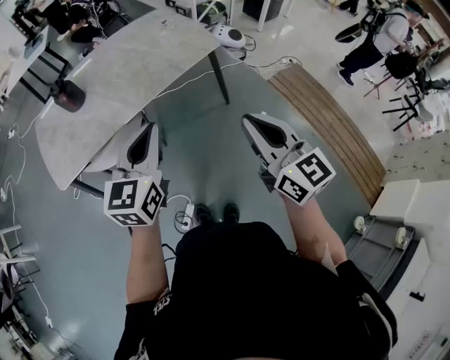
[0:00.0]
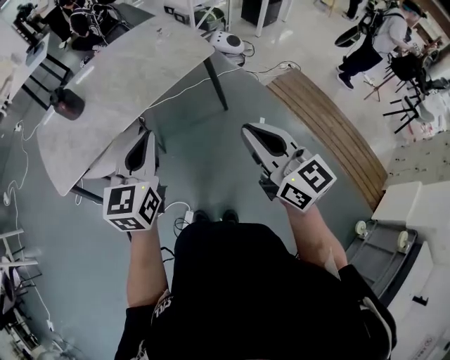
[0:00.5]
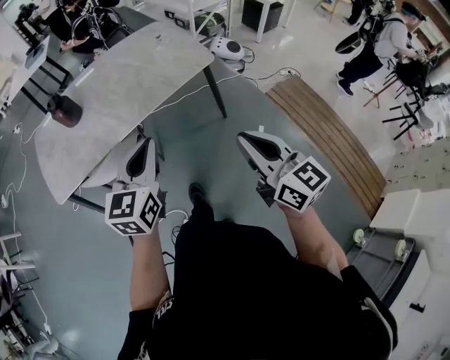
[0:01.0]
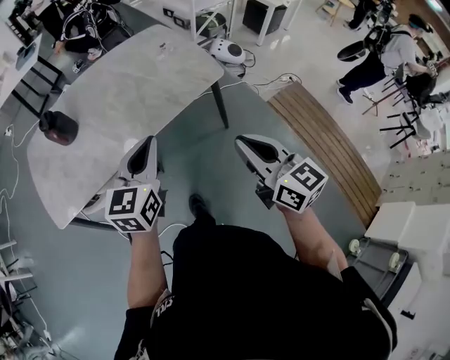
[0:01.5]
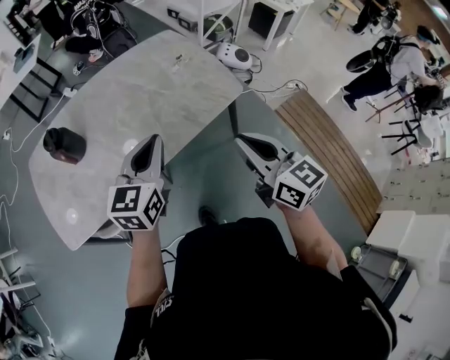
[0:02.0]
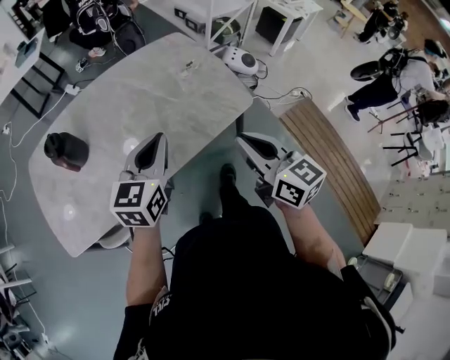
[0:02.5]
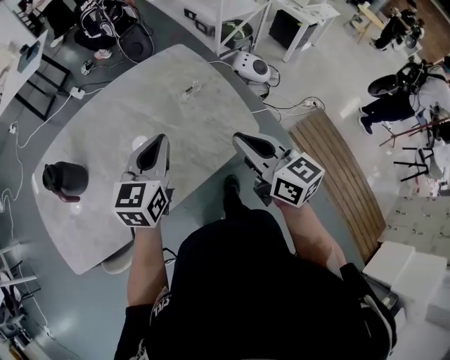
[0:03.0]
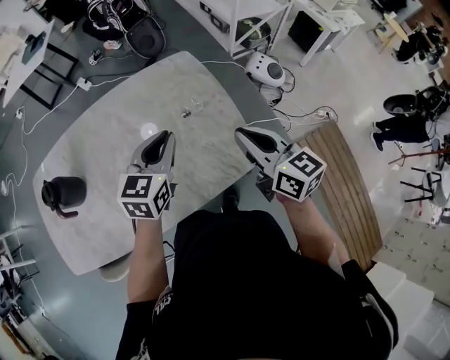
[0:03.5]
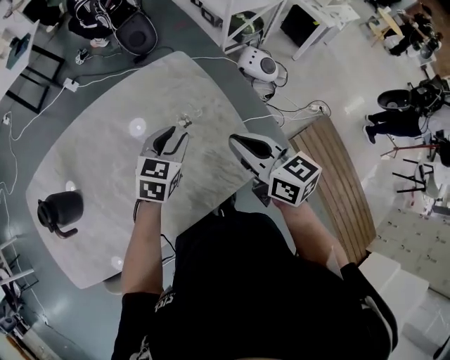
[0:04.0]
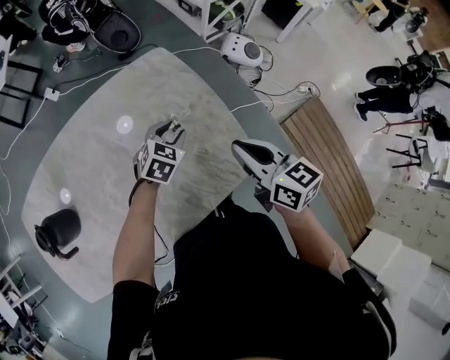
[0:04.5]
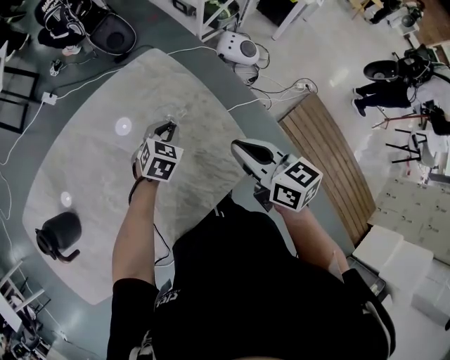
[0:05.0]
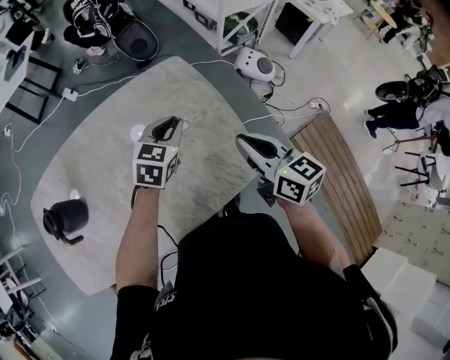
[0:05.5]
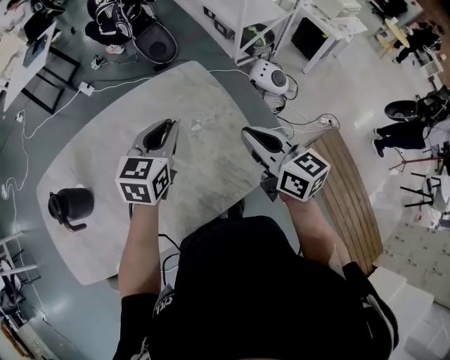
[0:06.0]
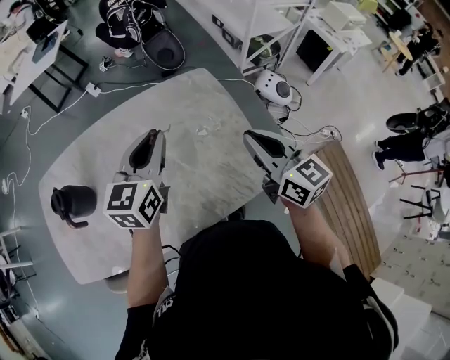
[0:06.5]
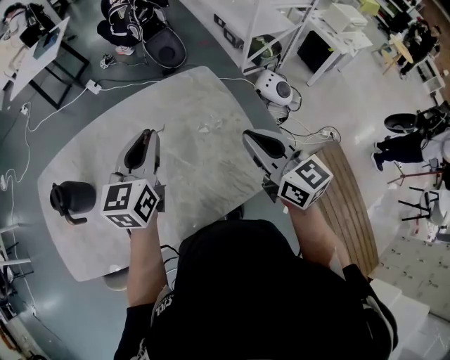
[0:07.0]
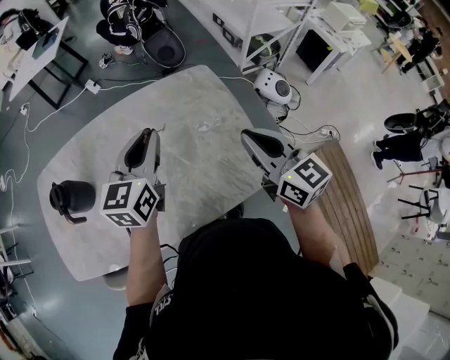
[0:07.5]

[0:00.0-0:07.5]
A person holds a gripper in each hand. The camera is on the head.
0:00.0 to 0:02.0: Both grippers move forward, about 30 cm.
0:02.0 to 0:04.0: The grippers both shift forward by some 40 cm. The left gripper changes its angle by some 20 degrees, and opens.
0:04.0 to 0:05.5: The left gripper travels downward and back again, roughly 10 cm each way, and closes up.
0:05.5 to 0:07.5: The right gripper is displaced upward by some 5 cm; the left gripper travels upward and to the left by some 20 cm, and turns by approximately 30 degrees.

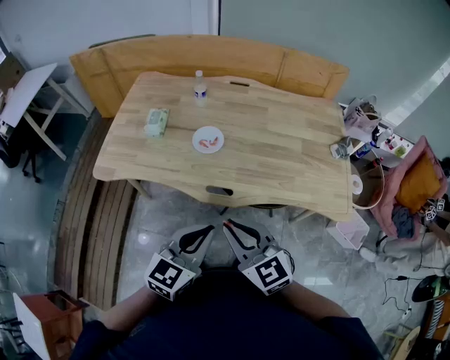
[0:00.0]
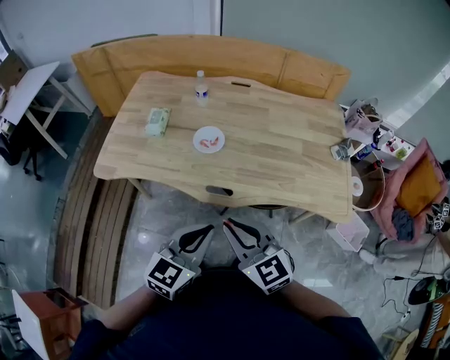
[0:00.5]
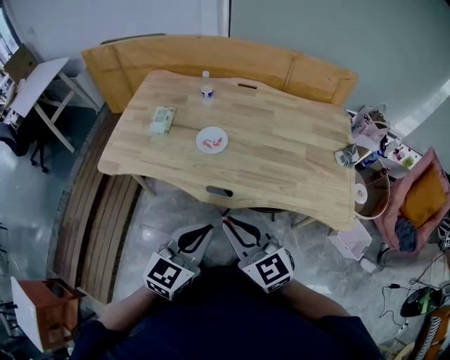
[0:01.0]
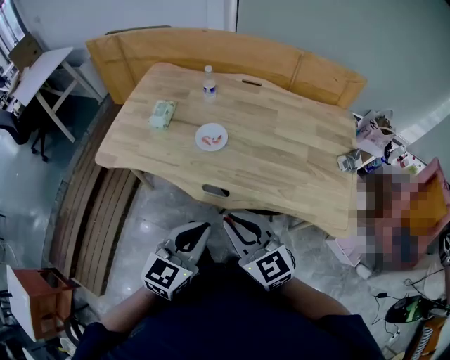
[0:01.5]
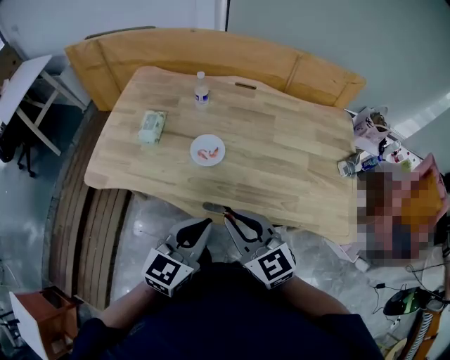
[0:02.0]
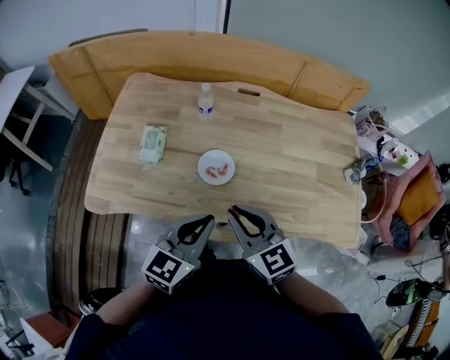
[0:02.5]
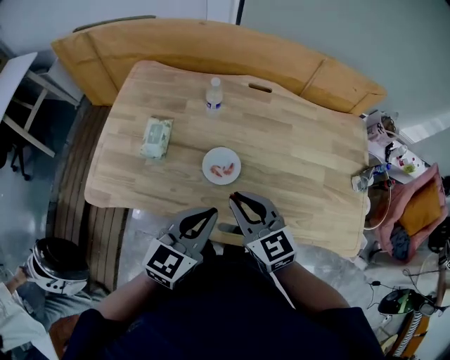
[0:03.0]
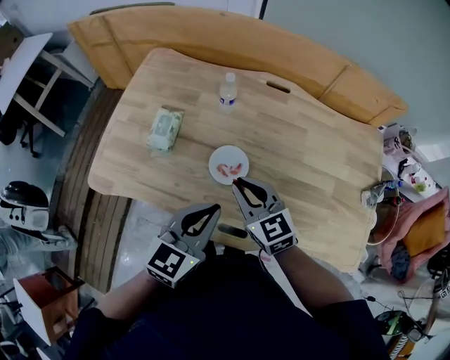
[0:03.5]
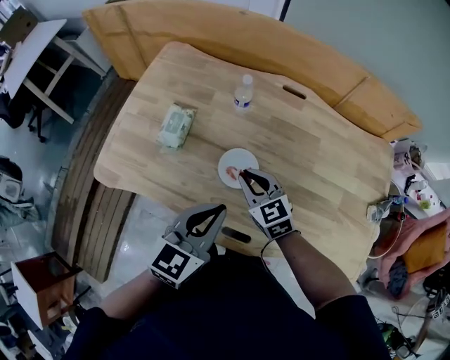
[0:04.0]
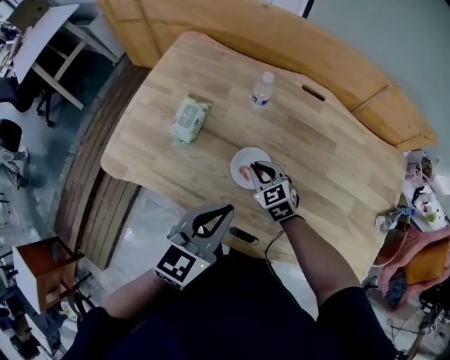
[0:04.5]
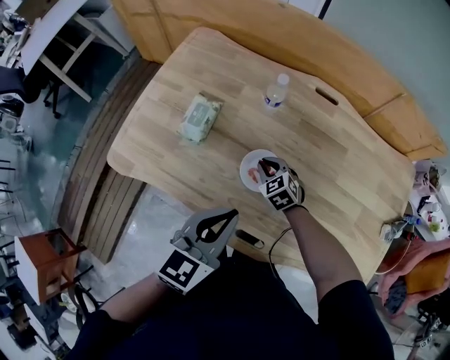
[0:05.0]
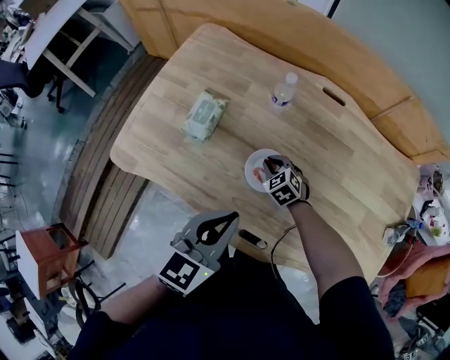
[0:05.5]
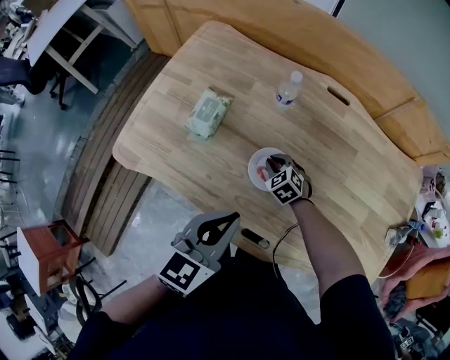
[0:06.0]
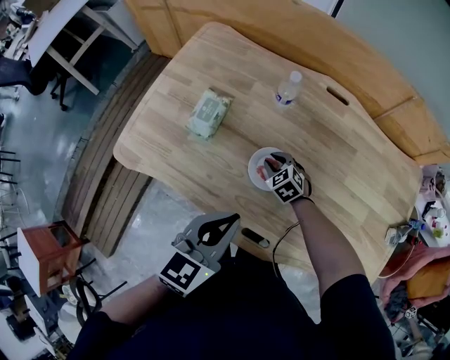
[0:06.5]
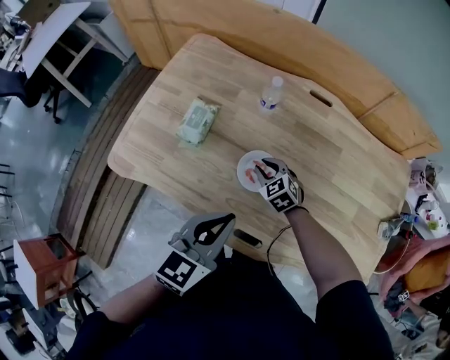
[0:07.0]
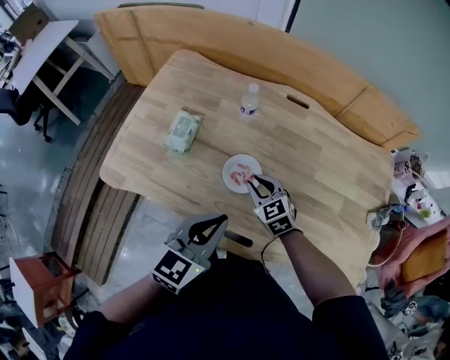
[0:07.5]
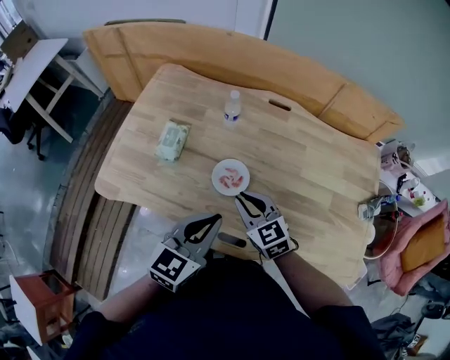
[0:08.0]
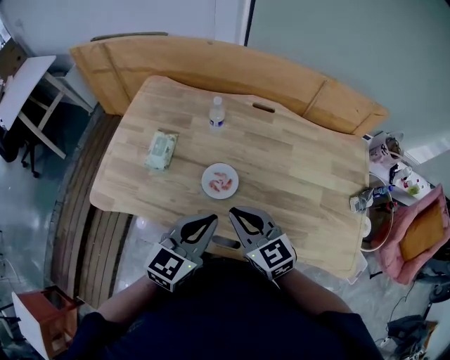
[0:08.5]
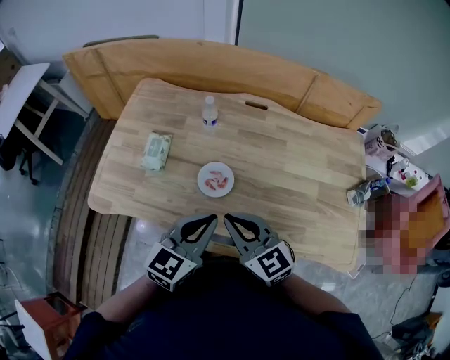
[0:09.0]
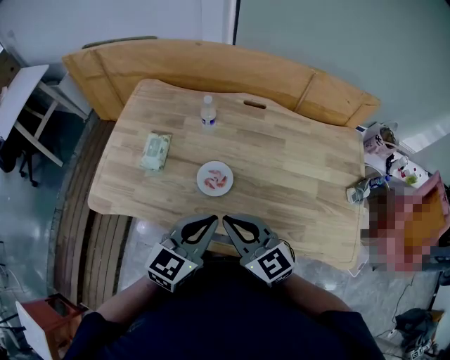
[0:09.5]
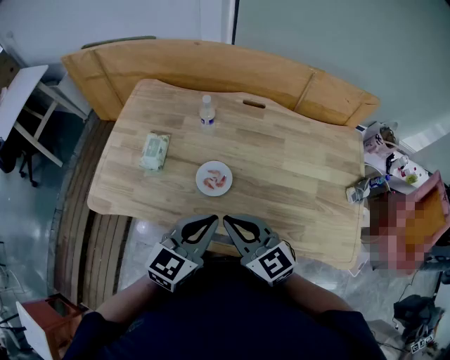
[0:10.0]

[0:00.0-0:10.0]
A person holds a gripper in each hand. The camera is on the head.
0:00.0 to 0:02.0: The grippers both shift forward by roughly 10 cm.
0:02.0 to 0:04.0: The right gripper goes about 30 cm forward and downward. Meanwhile the left gripper travels forward by approximately 20 cm.
0:04.0 to 0:06.0: The right gripper shifts some 20 cm downward and forward, and swivels roughly 30 degrees.
0:06.0 to 0:08.0: The right gripper heads upward and backward, covering roughly 25 cm, and turns by some 30 degrees. The left gripper changes place by about 5 cm.
0:08.0 to 0:10.0: The right gripper shifts some 15 cm upward and backward.

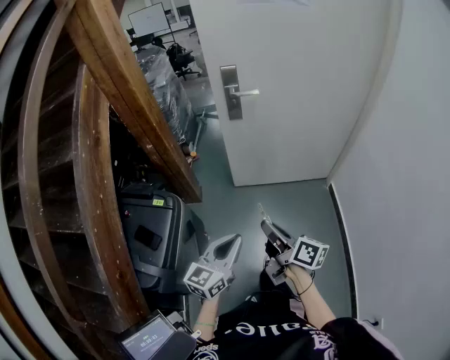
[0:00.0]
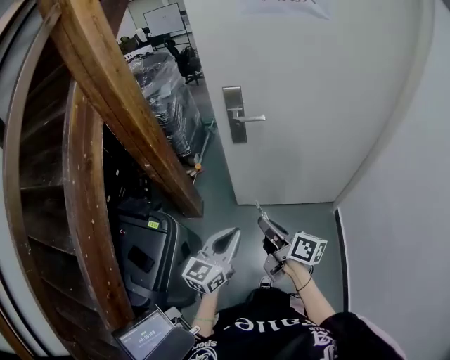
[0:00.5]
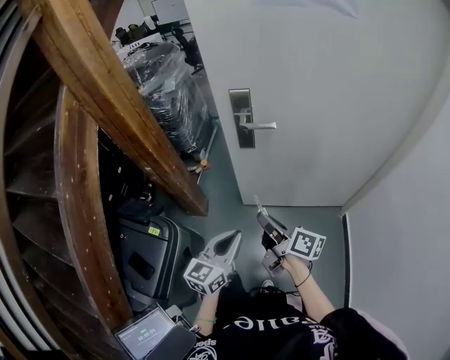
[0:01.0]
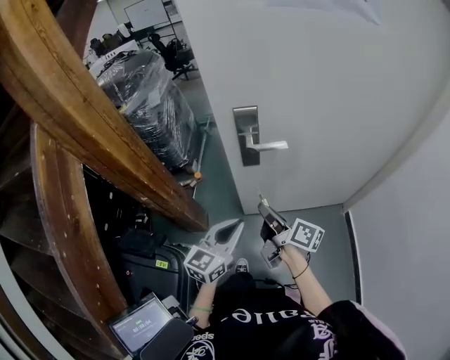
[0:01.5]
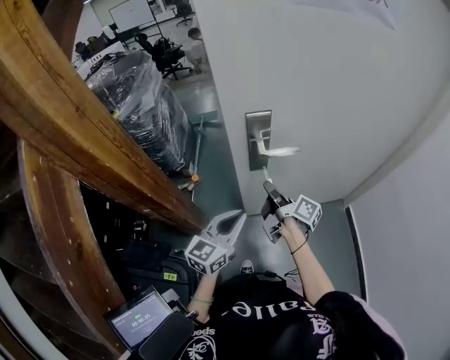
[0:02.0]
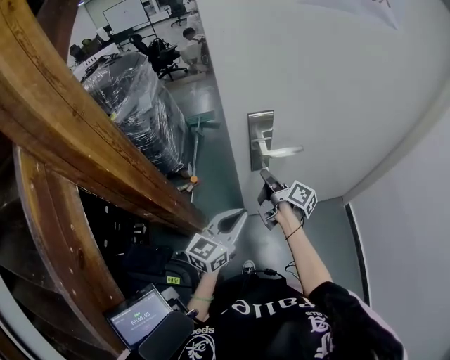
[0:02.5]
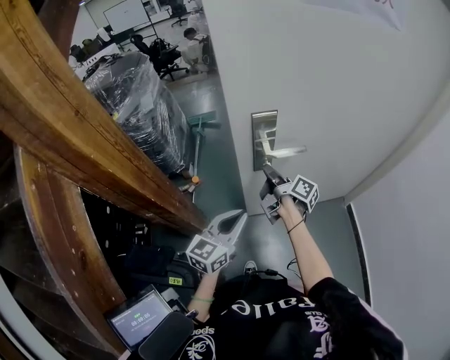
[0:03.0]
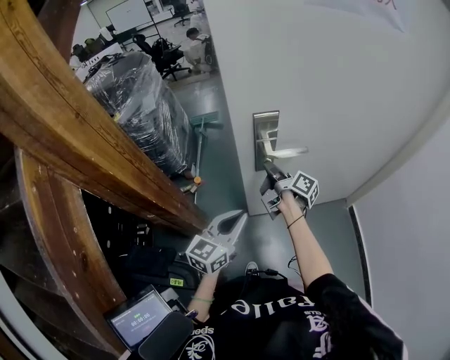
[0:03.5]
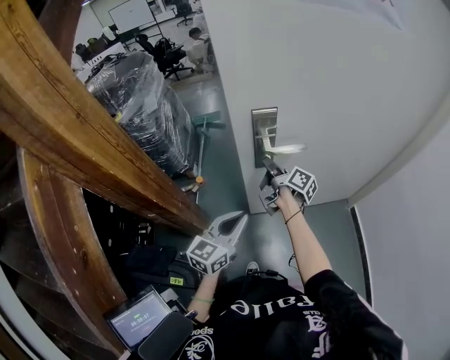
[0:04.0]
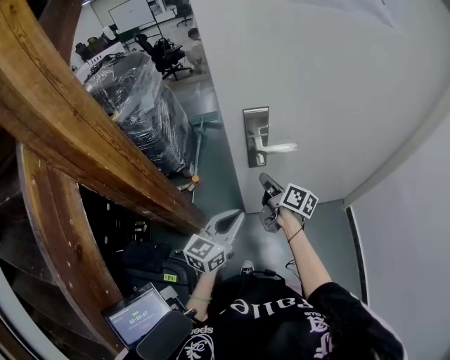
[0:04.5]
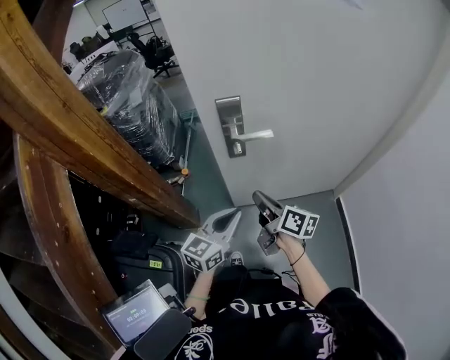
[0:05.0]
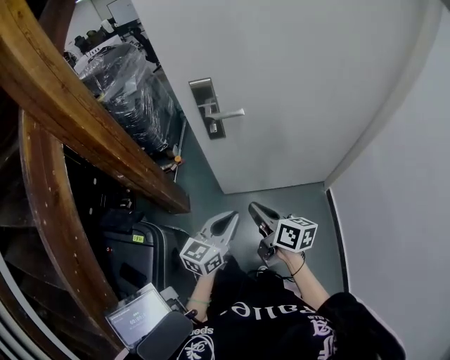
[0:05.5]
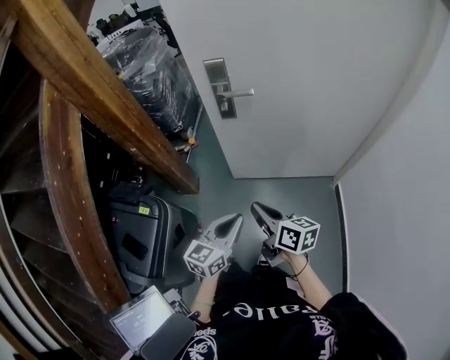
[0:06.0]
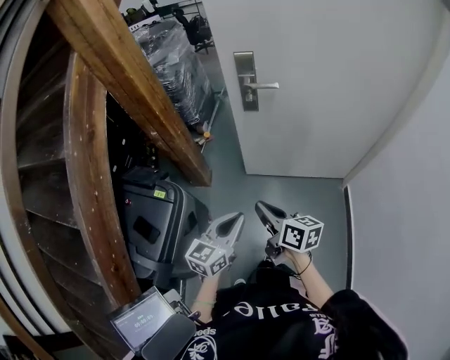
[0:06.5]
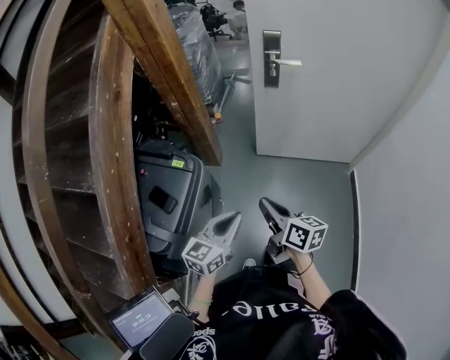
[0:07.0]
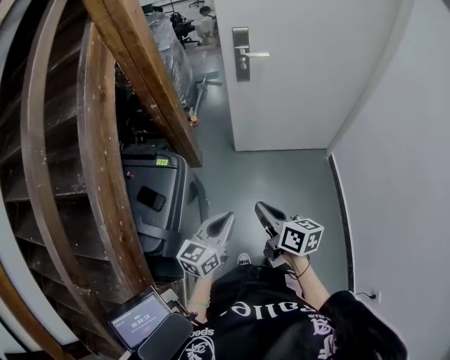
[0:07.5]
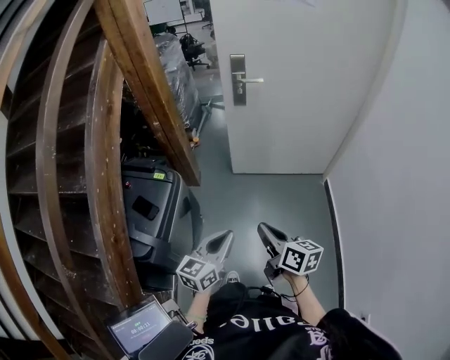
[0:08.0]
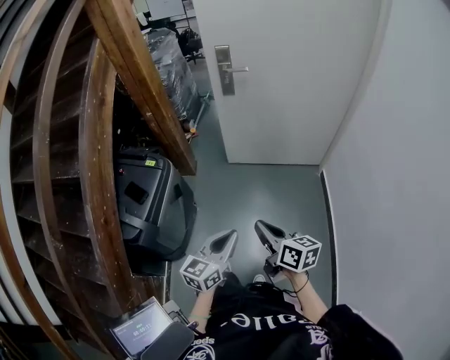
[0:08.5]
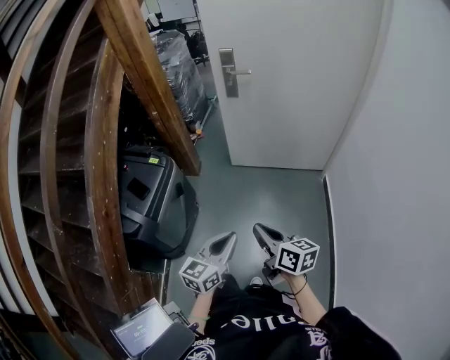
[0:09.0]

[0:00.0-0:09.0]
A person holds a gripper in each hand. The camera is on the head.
0:00.0 to 0:02.0: The pair of grippers is taken forward, some 50 cm. The right gripper changes its angle by roughly 20 degrees.
0:04.5 to 0:07.0: The pair of grippers is taken backward, roughly 50 cm. The right gripper rotates about 30 degrees.
0:07.0 to 0:09.0: Both grippers move backward and to the right, approximately 30 cm.
